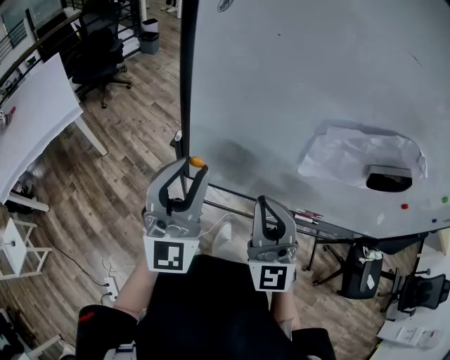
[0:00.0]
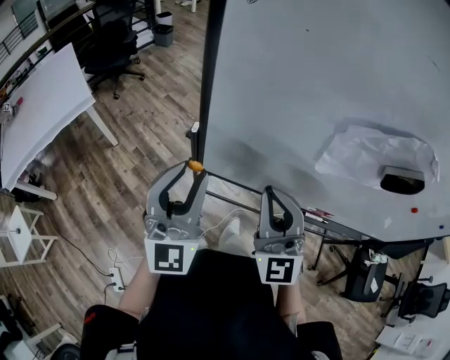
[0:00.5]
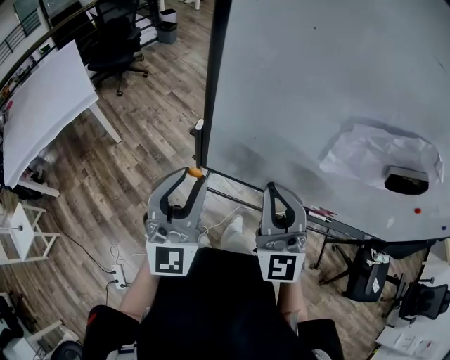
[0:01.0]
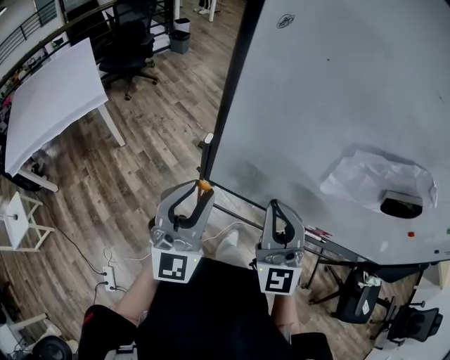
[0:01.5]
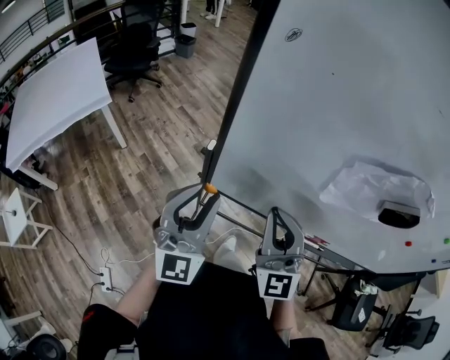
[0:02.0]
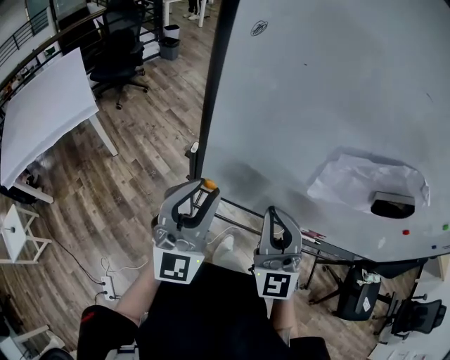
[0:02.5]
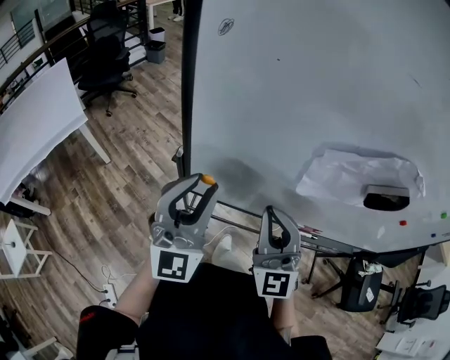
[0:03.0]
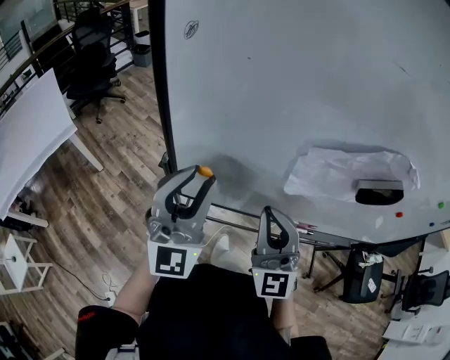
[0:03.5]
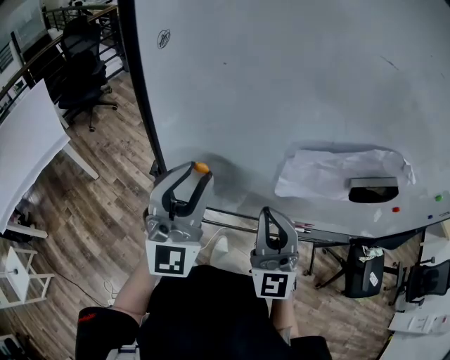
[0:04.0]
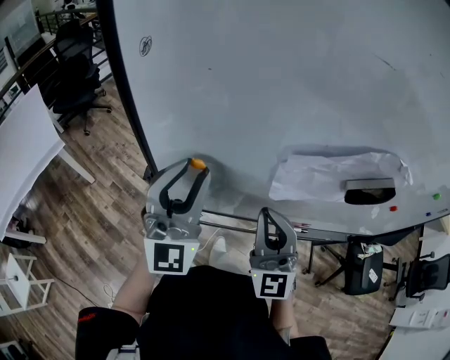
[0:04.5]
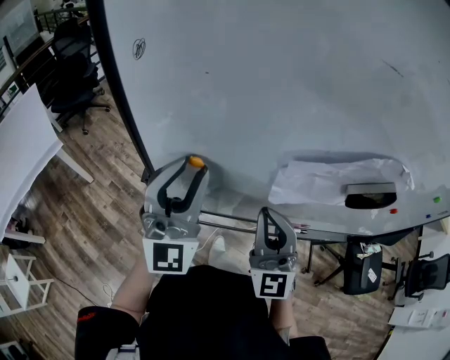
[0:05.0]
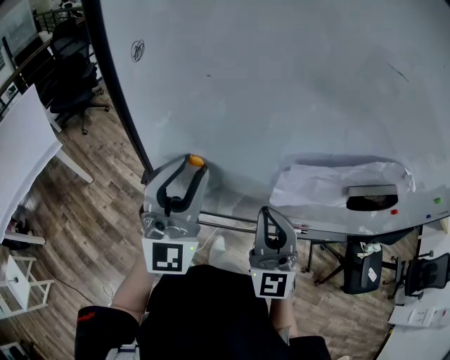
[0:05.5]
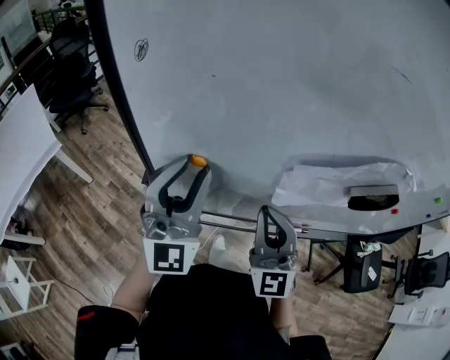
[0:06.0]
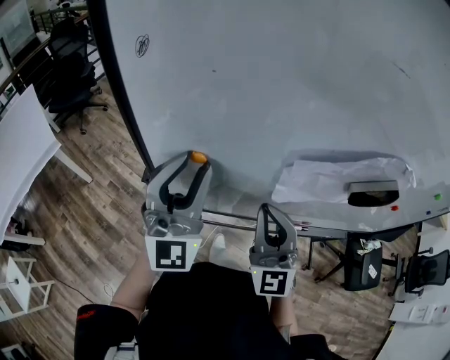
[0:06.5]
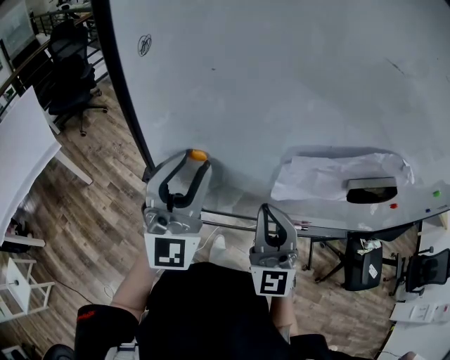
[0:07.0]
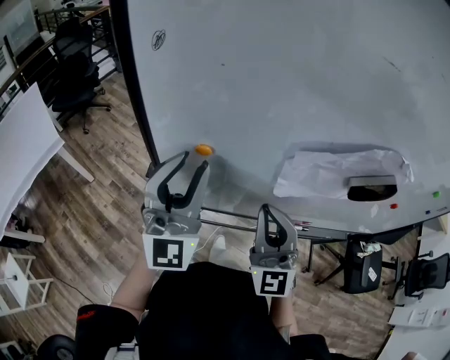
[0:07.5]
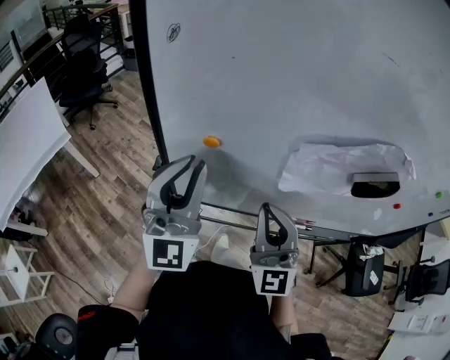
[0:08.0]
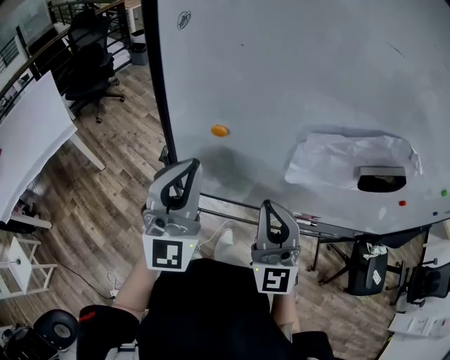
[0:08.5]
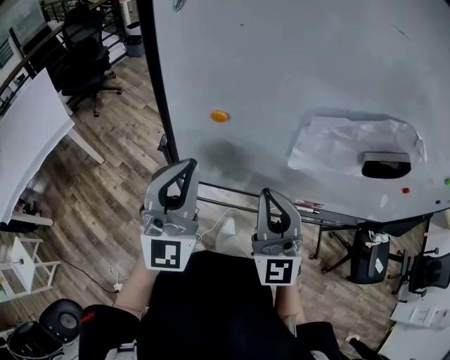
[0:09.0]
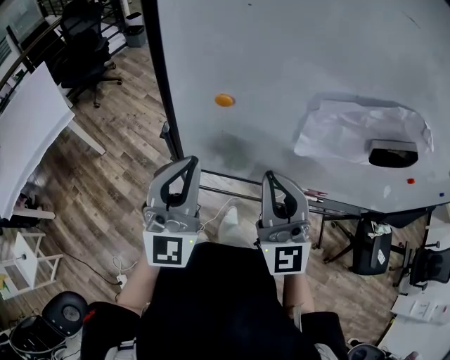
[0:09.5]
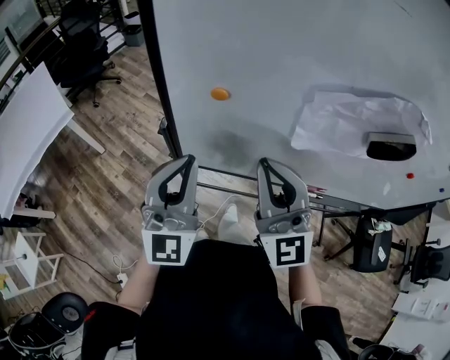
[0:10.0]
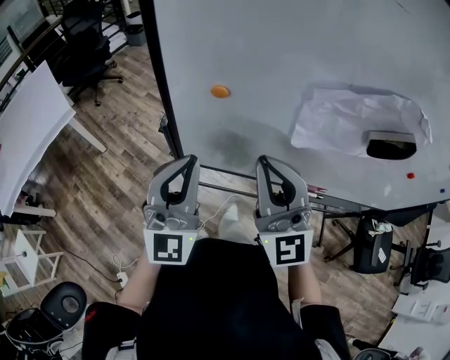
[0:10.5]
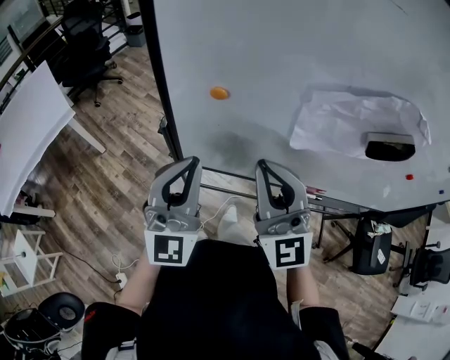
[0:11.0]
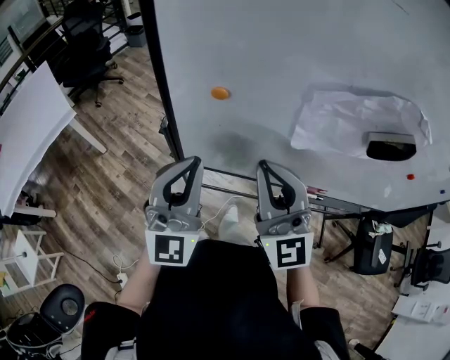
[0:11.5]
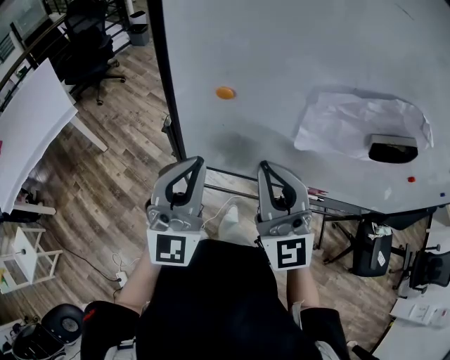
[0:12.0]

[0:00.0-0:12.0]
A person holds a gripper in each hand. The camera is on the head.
0:00.0 to 0:02.0: The left gripper moves about 5 cm.
0:02.0 to 0:04.0: The right gripper travels to the right by about 10 cm, while the left gripper moves to the right, forward and upward, about 15 cm.
0:04.0 to 0:08.0: The grippers make only small movements.
0:08.0 to 0:10.0: The left gripper moves downward and backward, about 10 cm; the right gripper shifts by roughly 5 cm.
0:10.0 to 0:12.0: The two grippers keep their place.

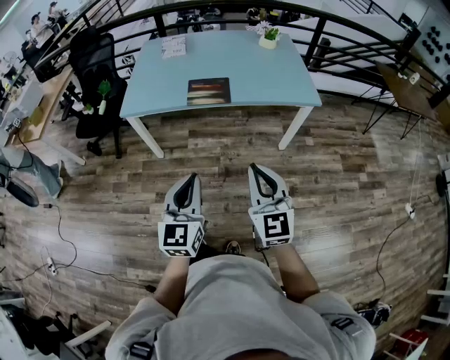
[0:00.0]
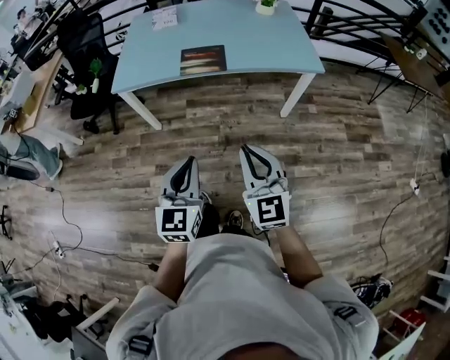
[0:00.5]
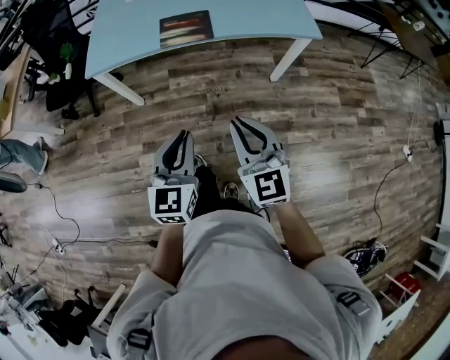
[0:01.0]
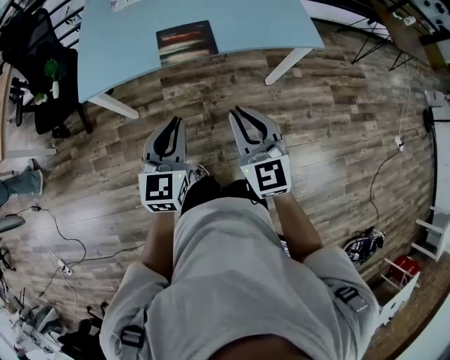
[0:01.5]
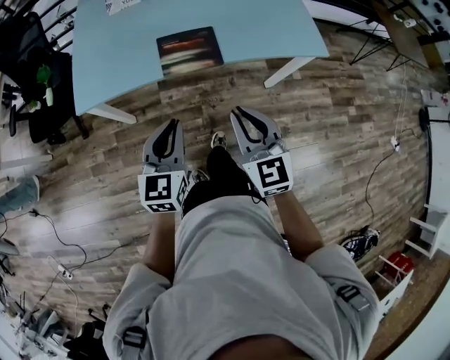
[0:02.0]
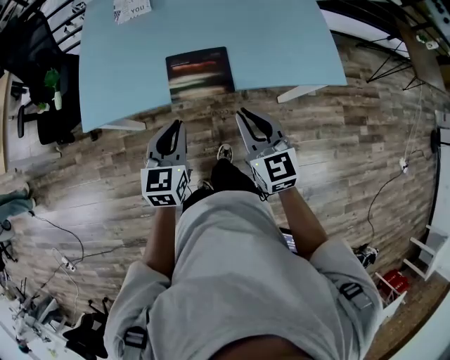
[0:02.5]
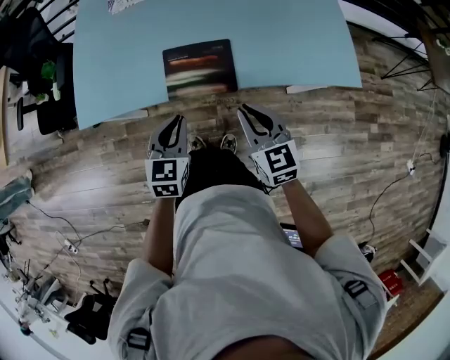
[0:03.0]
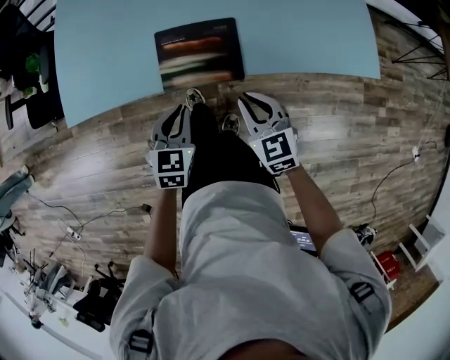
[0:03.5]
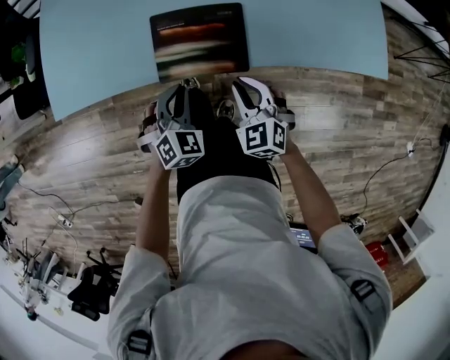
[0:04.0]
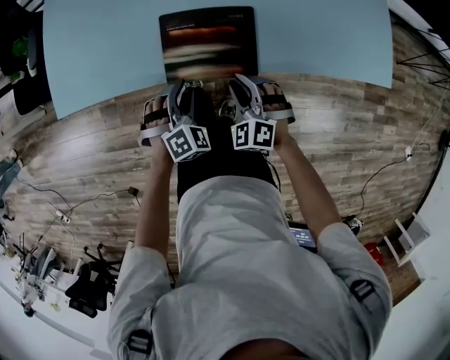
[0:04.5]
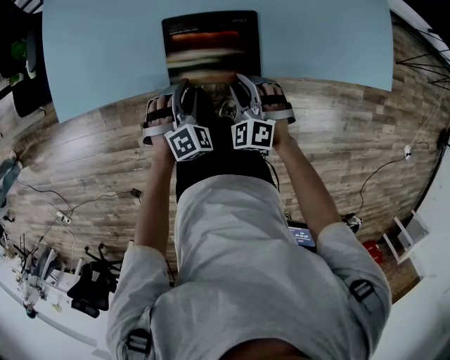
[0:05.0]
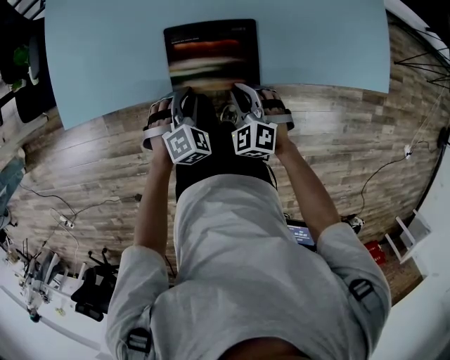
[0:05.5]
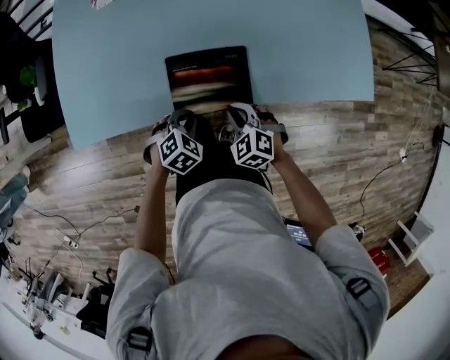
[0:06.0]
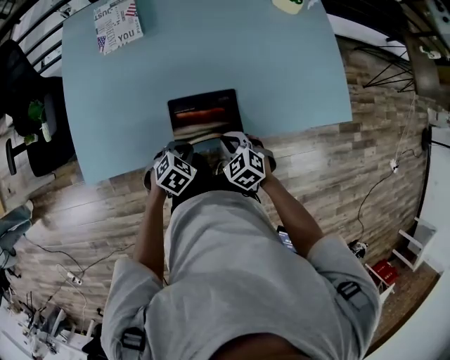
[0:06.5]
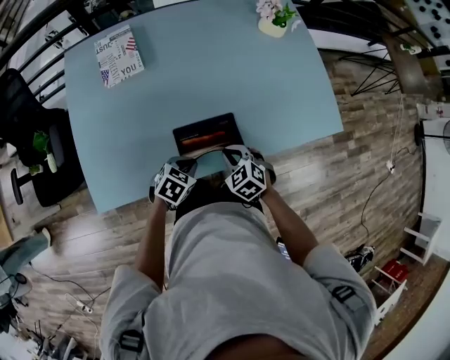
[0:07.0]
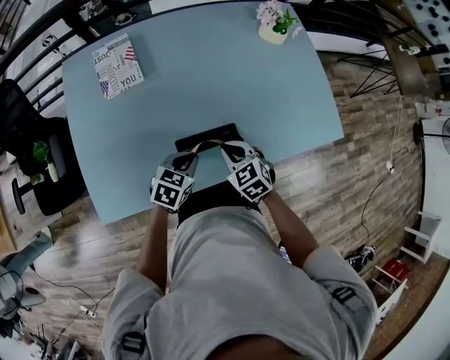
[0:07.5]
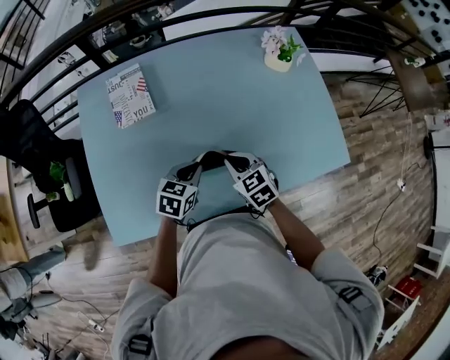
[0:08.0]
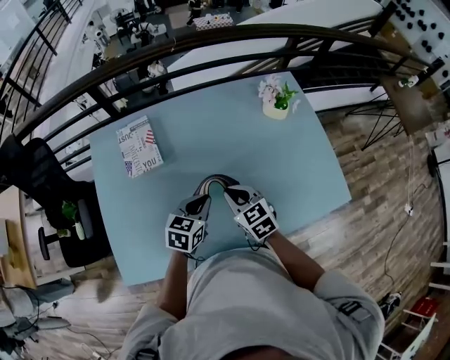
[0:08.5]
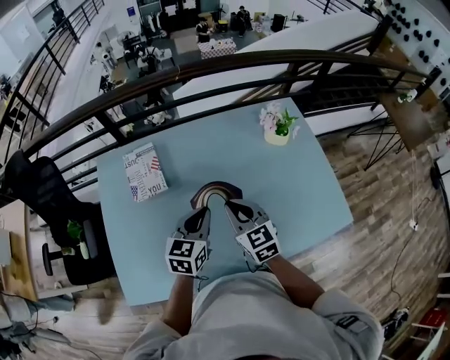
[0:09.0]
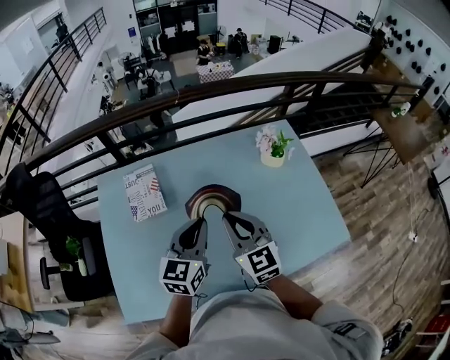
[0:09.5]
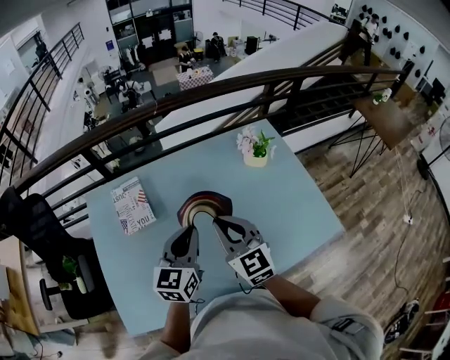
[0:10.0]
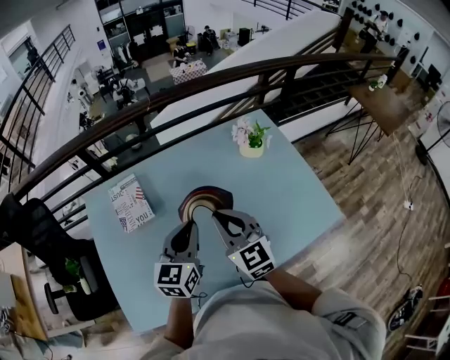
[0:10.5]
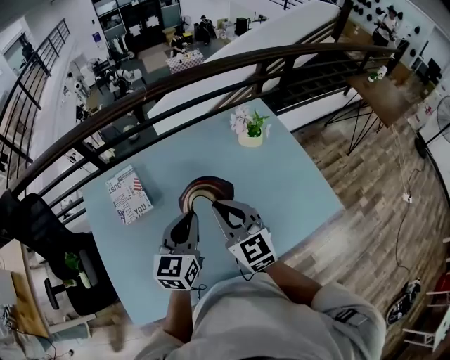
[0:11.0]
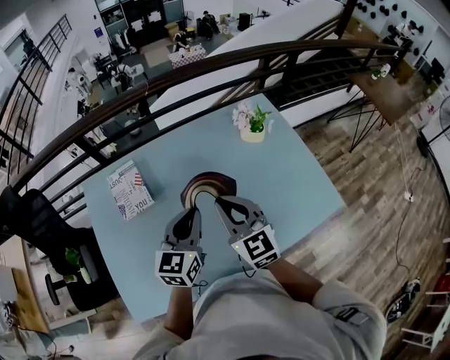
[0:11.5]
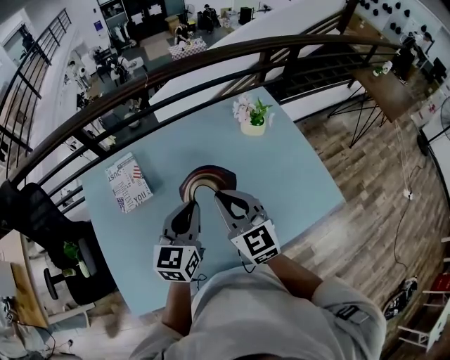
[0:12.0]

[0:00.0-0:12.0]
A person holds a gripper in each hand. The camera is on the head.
0:00.0 to 0:02.0: The grippers both shift forward by about 25 cm.
0:02.0 to 0:04.0: The two grippers go some 30 cm downward and forward. The left gripper changes its angle by approximately 50 degrees; the right gripper rotates about 30 degrees.
0:04.0 to 0:06.0: The right gripper ends up roughly 5 cm from where it was; the left gripper rotates some 30 degrees, and opens and closes again.
0:06.0 to 0:08.0: The two grippers go about 25 cm forward and upward. The left gripper swivels approximately 30 degrees; the right gripper swivels about 30 degrees.
0:08.0 to 0:10.0: The left gripper shifts some 20 cm upward and forward, and changes its angle by about 30 degrees; the right gripper is displaced upward by approximately 20 cm, and points its fingers roughly 30 degrees further upward.
0:10.0 to 0:12.0: The grippers make only small movements.

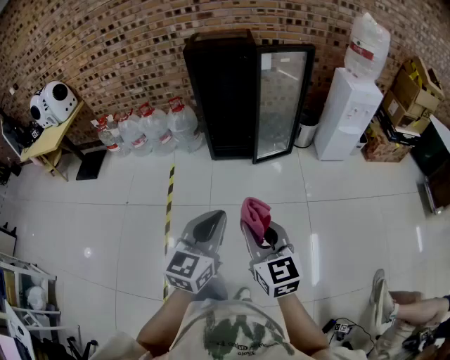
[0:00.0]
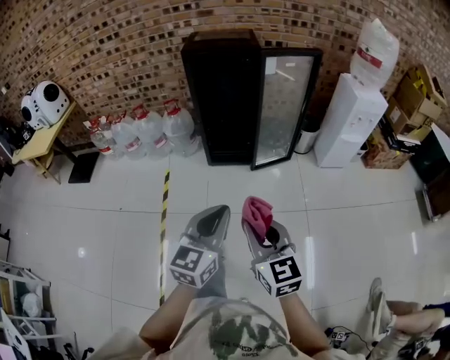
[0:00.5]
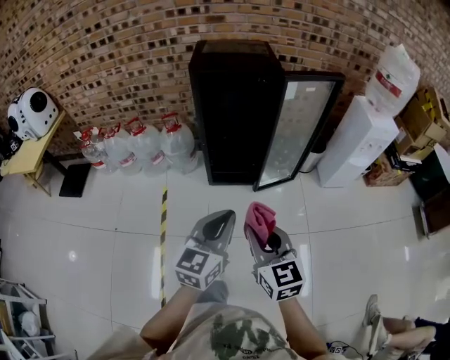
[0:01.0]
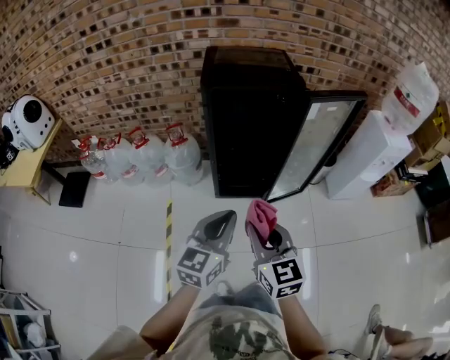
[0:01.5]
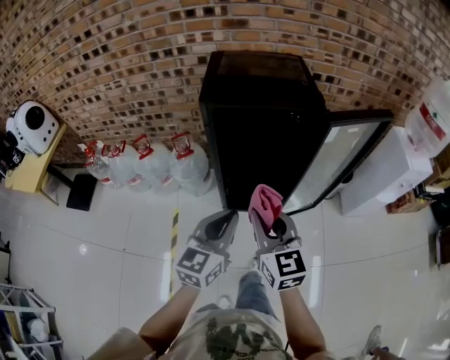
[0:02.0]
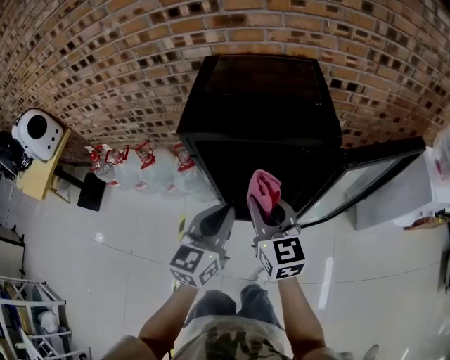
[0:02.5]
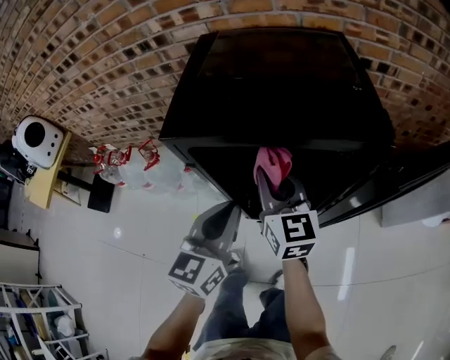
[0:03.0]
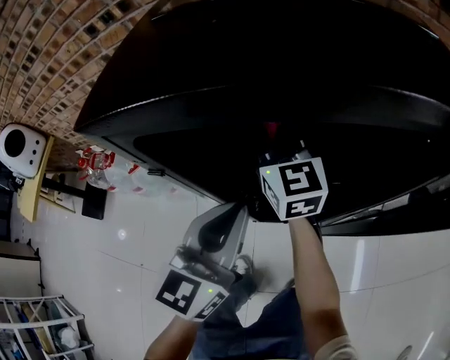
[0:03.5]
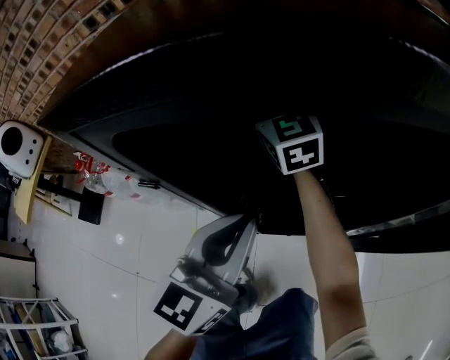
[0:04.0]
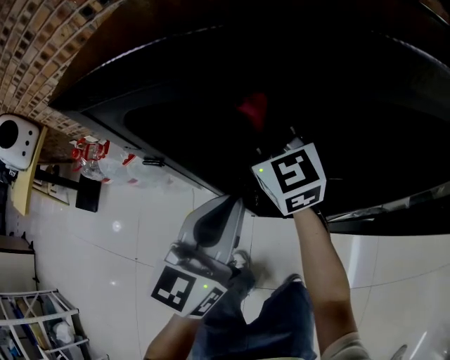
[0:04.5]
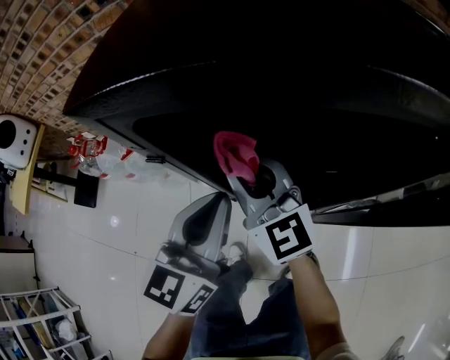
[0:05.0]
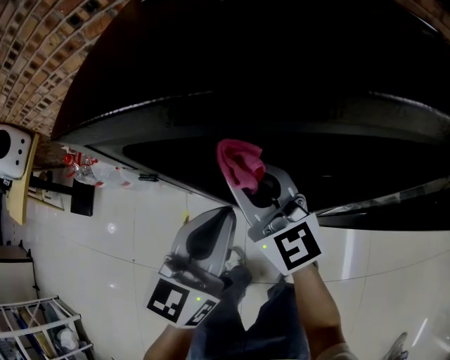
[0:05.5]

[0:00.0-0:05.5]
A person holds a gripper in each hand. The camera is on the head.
0:00.0 to 0:02.0: The pair of grippers is taken forward, approximately 60 cm.
0:02.0 to 0:03.5: The right gripper heads forward and downward, covering about 50 cm. Meanwhile the left gripper goes about 30 cm forward and downward.
0:03.5 to 0:05.5: The right gripper travels backward and to the left by about 10 cm.
